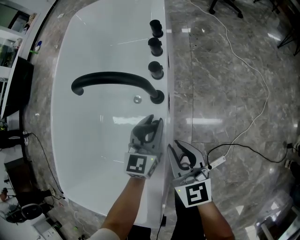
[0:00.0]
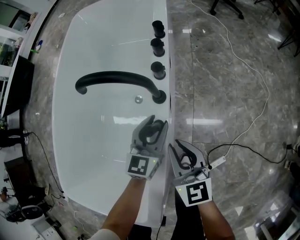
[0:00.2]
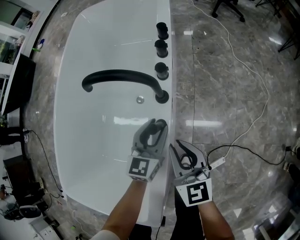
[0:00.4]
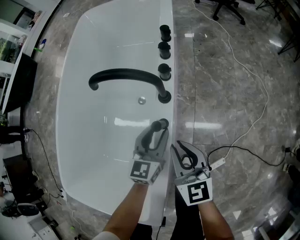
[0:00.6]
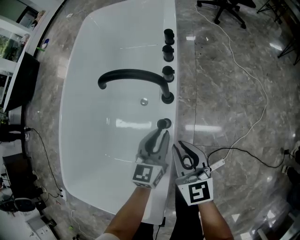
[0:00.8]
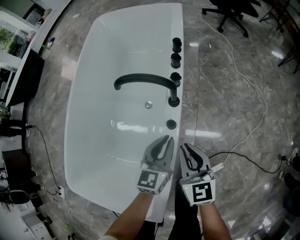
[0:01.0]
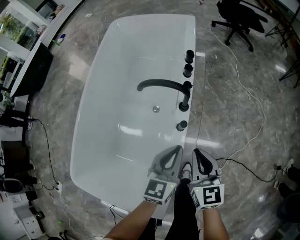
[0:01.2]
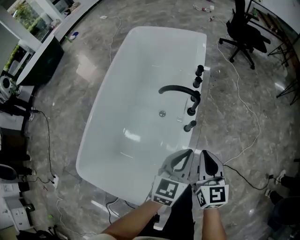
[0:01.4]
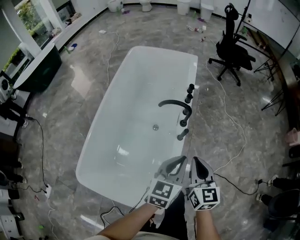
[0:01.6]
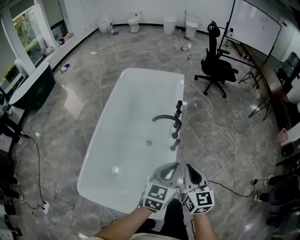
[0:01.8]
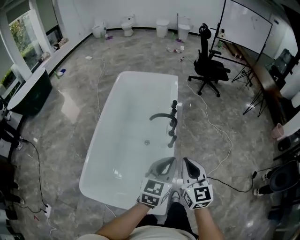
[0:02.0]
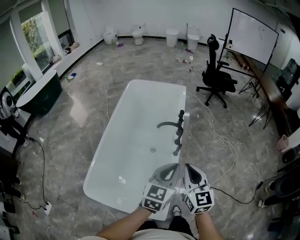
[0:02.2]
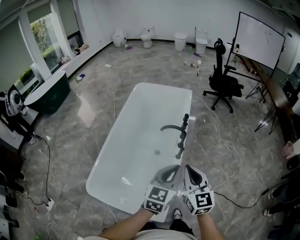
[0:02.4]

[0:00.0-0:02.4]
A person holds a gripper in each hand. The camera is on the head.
0:00.0 to 0:01.2: The left gripper heads upward and backward, covering approximately 20 cm, and closes up; the right gripper goes about 10 cm upward.
0:01.2 to 0:02.4: The grippers both shift upward and backward by roughly 35 cm.

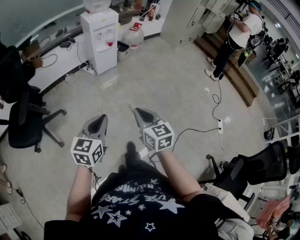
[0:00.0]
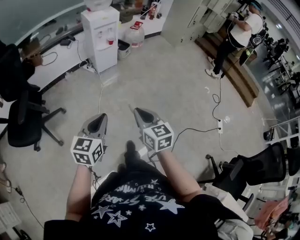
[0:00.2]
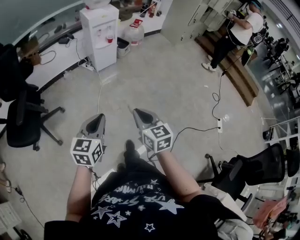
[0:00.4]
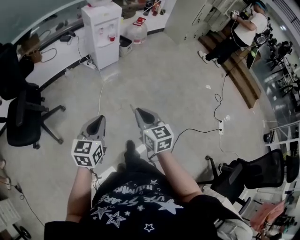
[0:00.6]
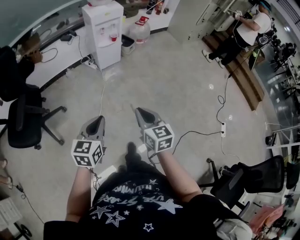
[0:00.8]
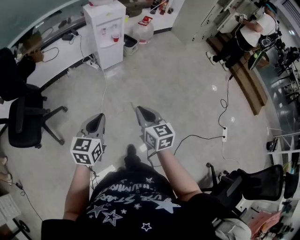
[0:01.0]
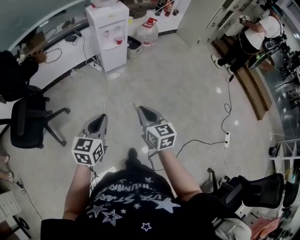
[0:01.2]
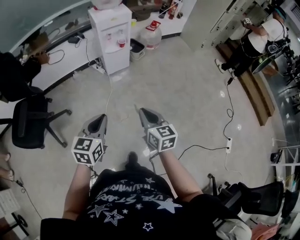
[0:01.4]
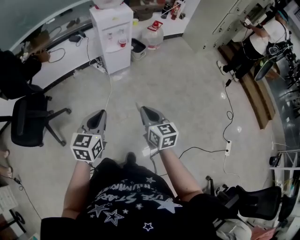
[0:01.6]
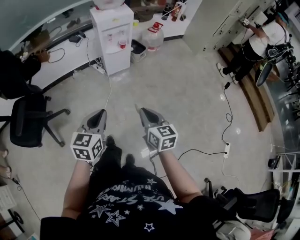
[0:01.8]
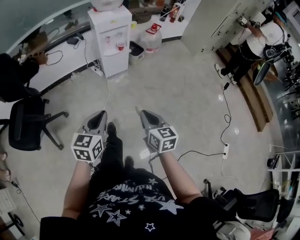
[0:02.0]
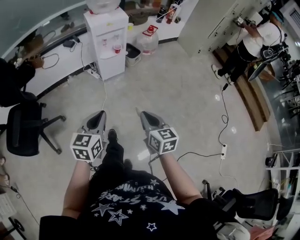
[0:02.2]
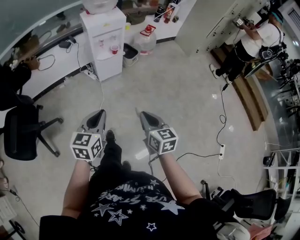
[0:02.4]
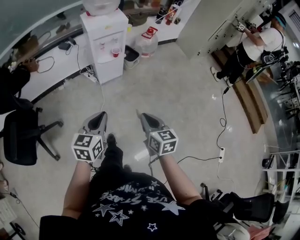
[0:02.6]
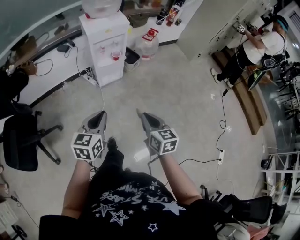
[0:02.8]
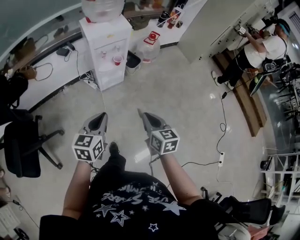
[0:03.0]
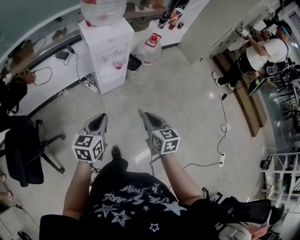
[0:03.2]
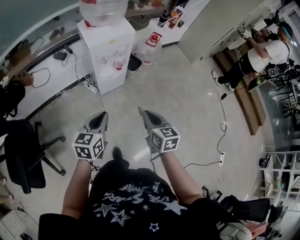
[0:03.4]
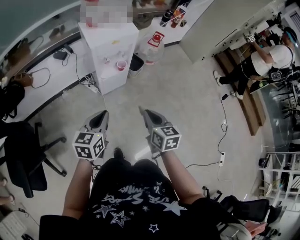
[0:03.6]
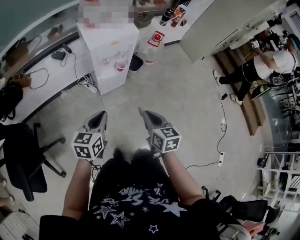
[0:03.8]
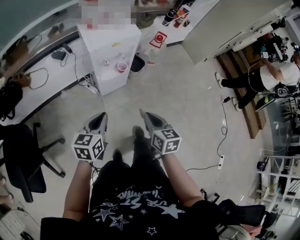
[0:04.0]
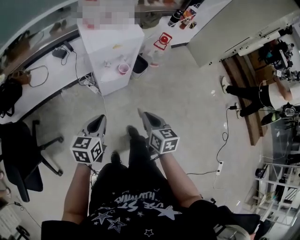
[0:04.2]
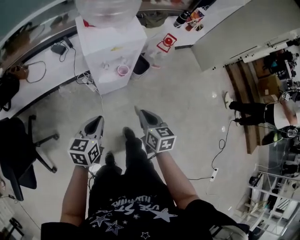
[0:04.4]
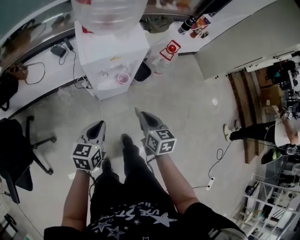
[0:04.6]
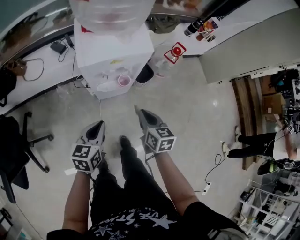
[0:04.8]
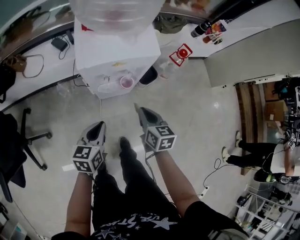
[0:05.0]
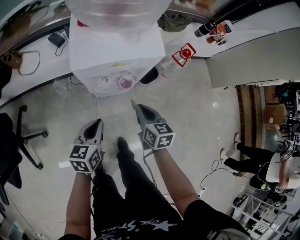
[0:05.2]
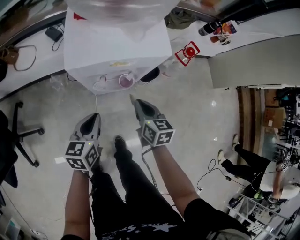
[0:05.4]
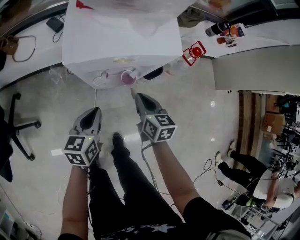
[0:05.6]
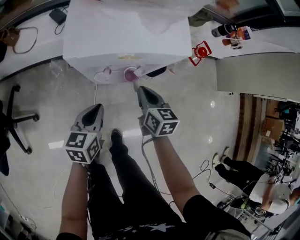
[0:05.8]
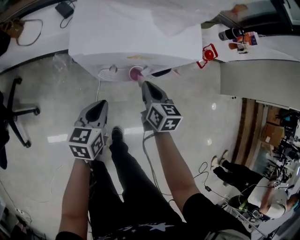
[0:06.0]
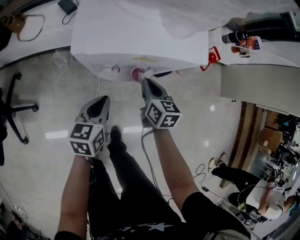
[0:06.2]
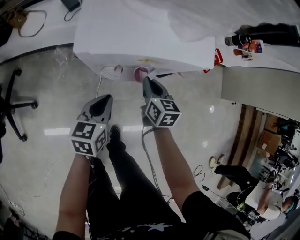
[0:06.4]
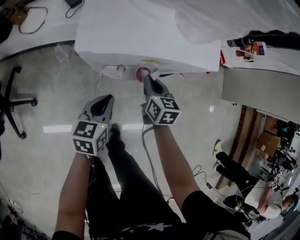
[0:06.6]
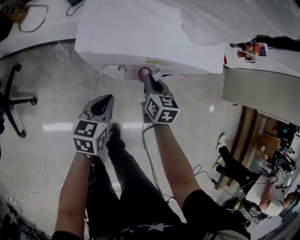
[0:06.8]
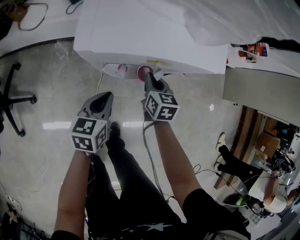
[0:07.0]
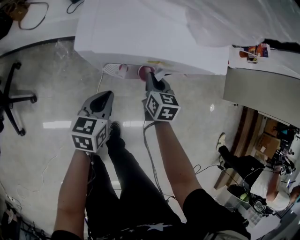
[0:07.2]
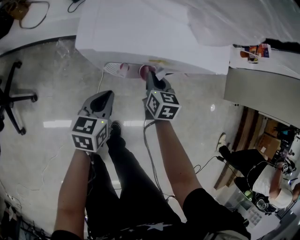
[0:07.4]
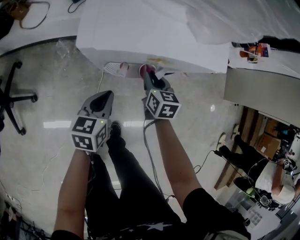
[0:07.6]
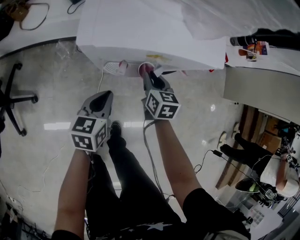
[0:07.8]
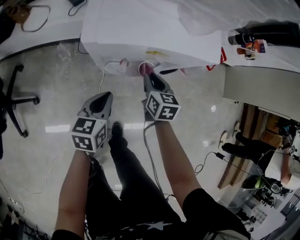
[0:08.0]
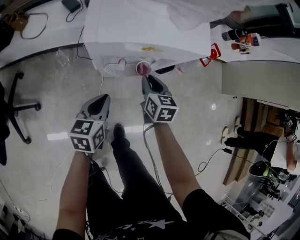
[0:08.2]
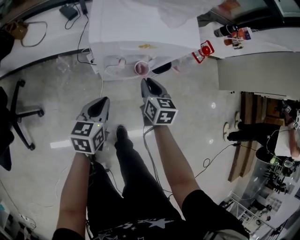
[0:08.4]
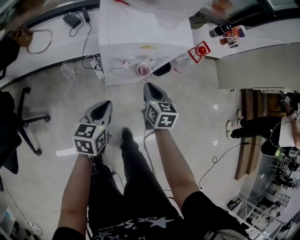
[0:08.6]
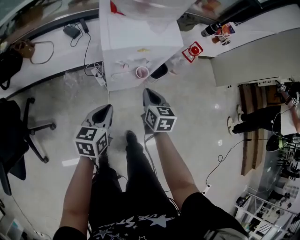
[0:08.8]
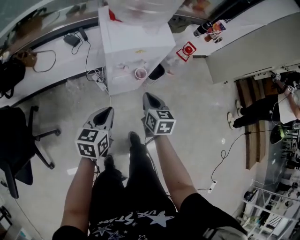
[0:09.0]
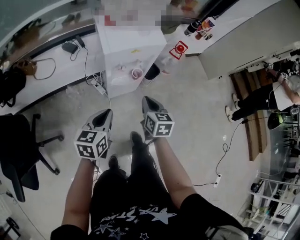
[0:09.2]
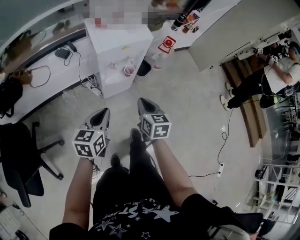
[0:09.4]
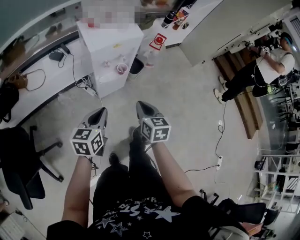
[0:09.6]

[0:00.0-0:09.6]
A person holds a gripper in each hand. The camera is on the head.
0:00.0 to 0:01.6: The grippers both shift forward by approximately 25 cm.
0:01.6 to 0:03.2: The two grippers go about 30 cm forward.
0:03.2 to 0:04.8: The grippers both shift forward and downward by approximately 30 cm.
0:04.8 to 0:06.4: The left gripper moves downward and forward, about 20 cm; the right gripper moves forward and downward, approximately 25 cm.
0:06.4 to 0:08.0: The grippers move only a little.
0:08.0 to 0:09.6: The left gripper travels upward and backward by approximately 30 cm, and turns by about 30 degrees. Meanwhile the right gripper goes some 40 cm backward and upward, and turns by some 20 degrees.

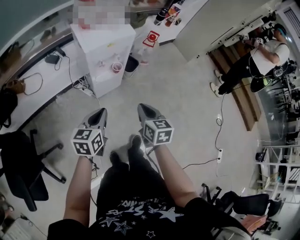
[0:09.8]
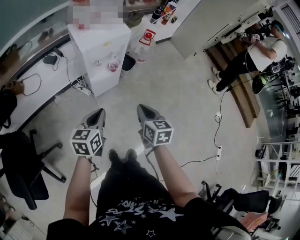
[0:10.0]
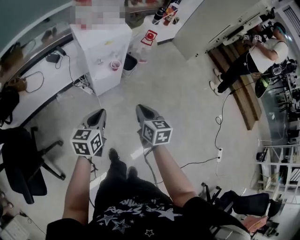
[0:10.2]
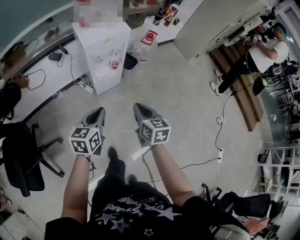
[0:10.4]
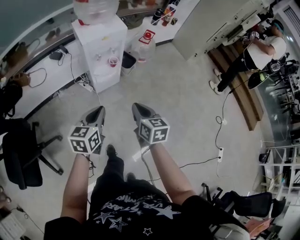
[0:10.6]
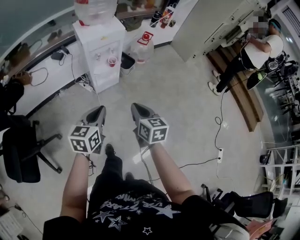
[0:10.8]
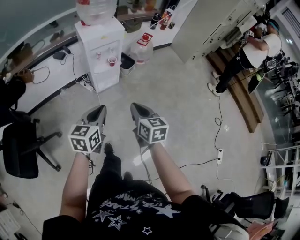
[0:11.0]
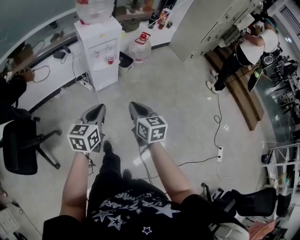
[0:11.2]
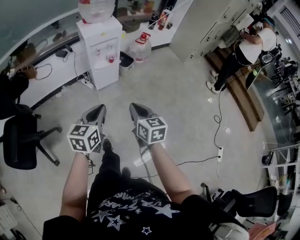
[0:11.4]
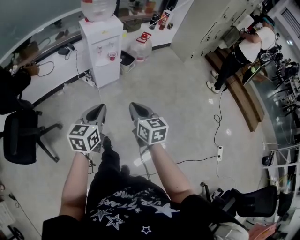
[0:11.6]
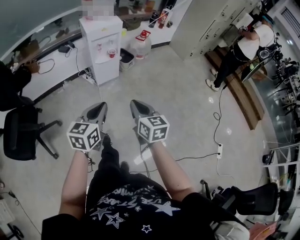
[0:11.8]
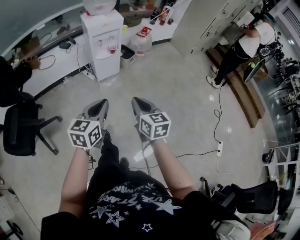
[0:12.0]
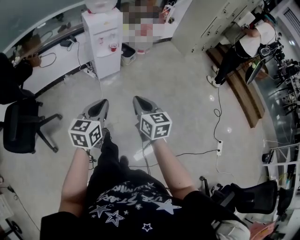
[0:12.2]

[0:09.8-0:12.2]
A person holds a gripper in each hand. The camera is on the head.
0:09.8 to 0:11.0: The right gripper shifts some 15 cm backward, while the left gripper moves backward, to the right and upward, about 20 cm.
0:11.0 to 0:12.2: The two grippers go about 20 cm backward.

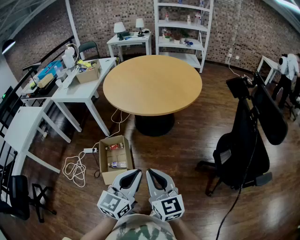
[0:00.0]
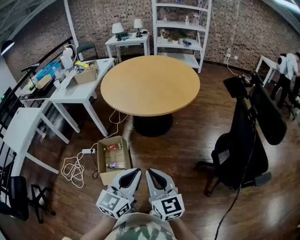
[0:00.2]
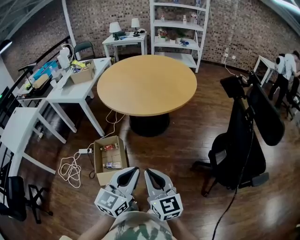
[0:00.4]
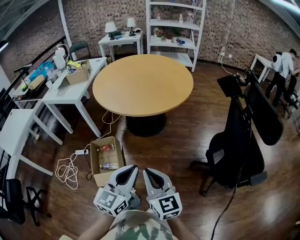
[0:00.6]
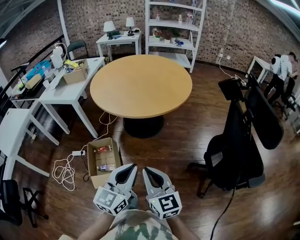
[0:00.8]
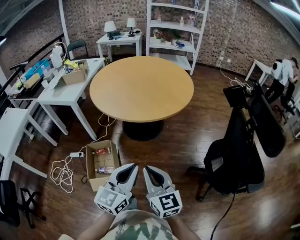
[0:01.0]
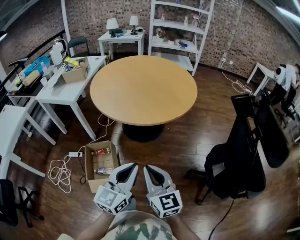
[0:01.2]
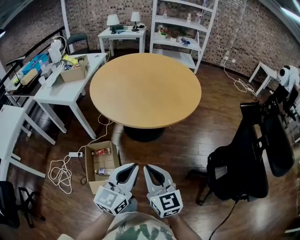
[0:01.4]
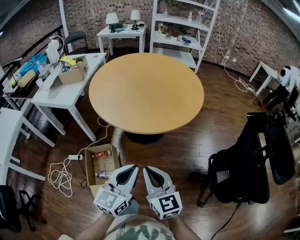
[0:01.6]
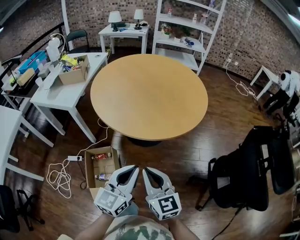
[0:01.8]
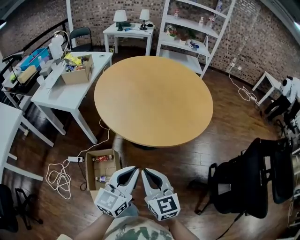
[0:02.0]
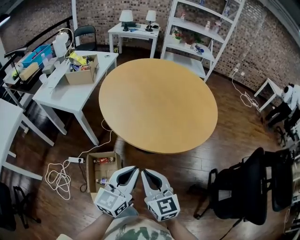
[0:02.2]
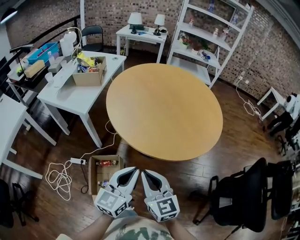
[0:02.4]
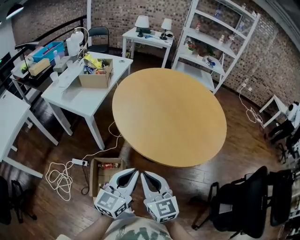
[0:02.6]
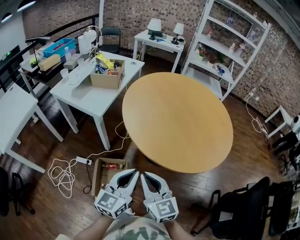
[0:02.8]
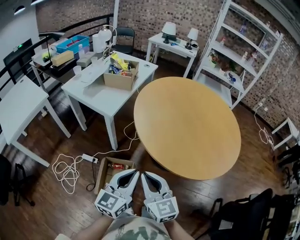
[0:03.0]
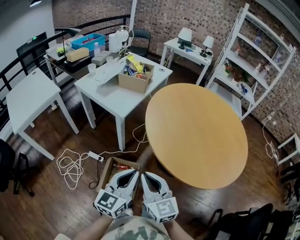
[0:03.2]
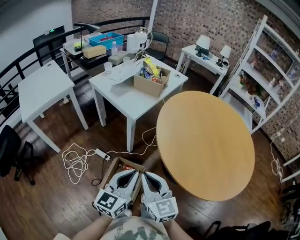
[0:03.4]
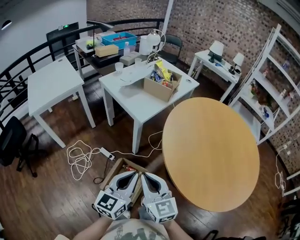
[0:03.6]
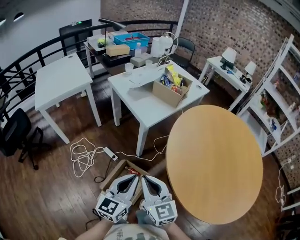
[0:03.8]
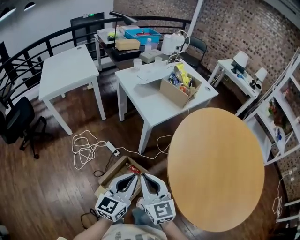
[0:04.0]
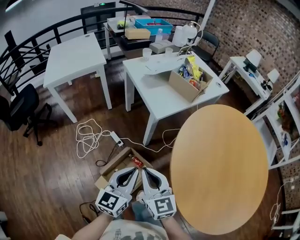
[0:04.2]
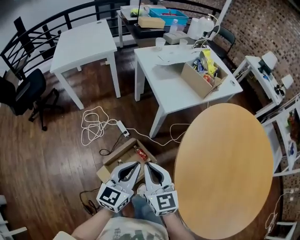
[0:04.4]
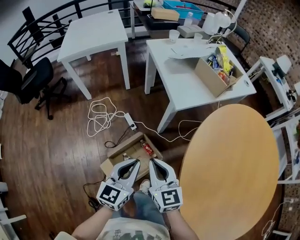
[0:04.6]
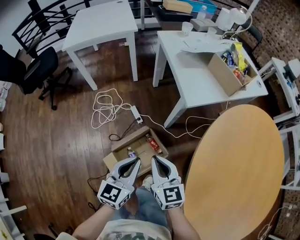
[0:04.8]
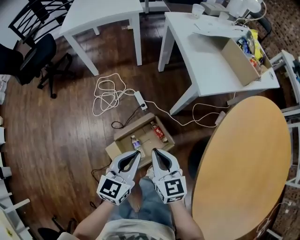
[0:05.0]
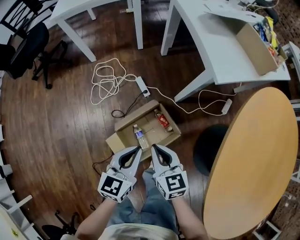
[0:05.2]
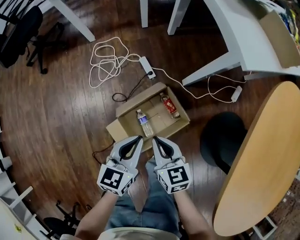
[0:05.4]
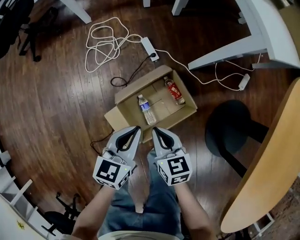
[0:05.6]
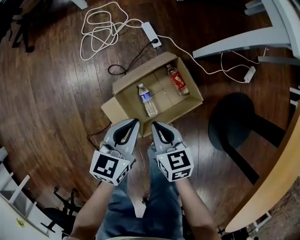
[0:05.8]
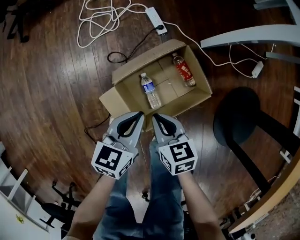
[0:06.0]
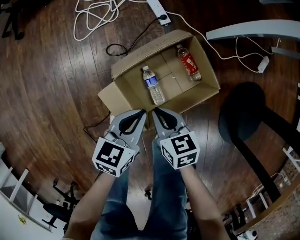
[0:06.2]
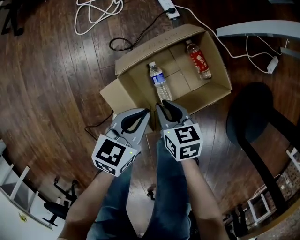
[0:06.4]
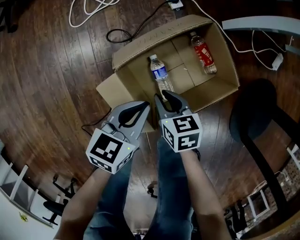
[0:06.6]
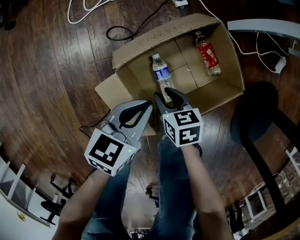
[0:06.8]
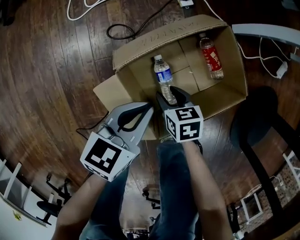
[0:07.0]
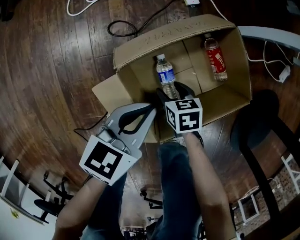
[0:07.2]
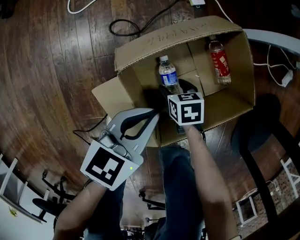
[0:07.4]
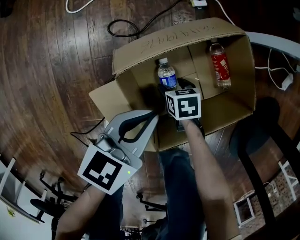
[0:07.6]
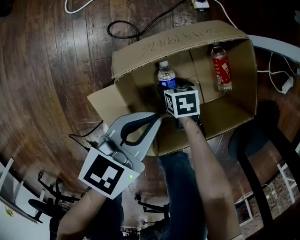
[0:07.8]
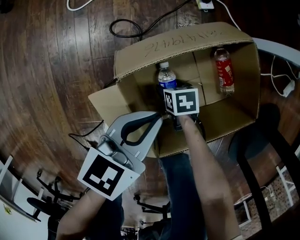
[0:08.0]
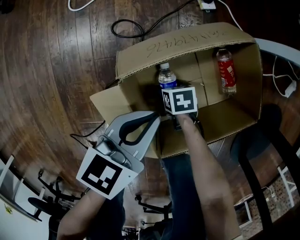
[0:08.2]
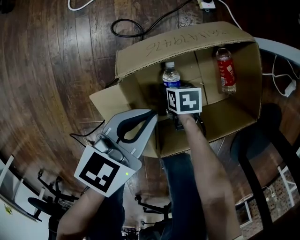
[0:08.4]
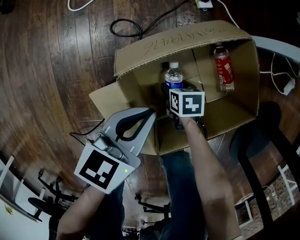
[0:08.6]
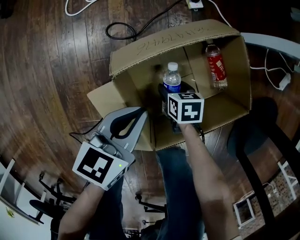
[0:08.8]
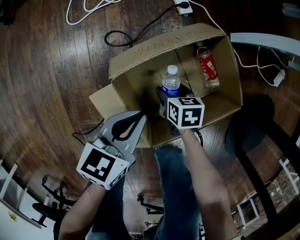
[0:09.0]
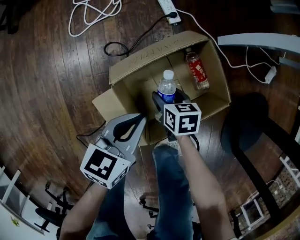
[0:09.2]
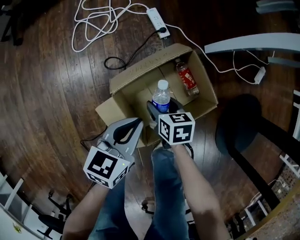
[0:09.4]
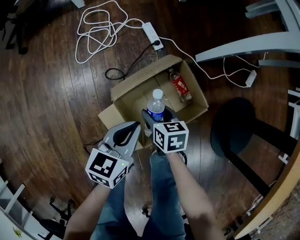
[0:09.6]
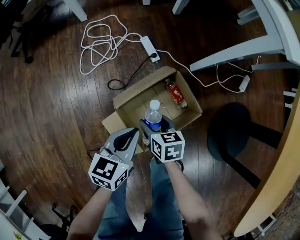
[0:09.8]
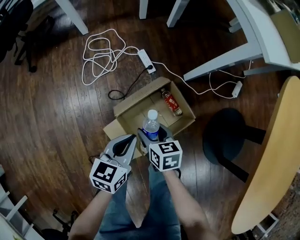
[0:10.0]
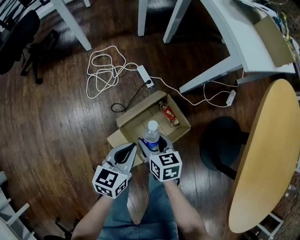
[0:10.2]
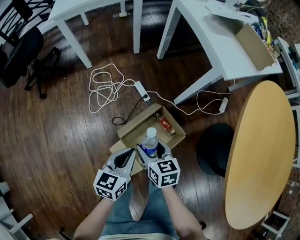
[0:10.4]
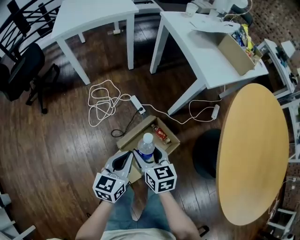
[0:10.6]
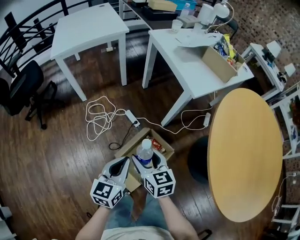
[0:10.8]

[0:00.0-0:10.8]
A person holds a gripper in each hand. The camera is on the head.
0:00.0 to 0:01.6: Both grippers travel together forward, roughly 20 cm.
0:01.6 to 0:03.0: The two grippers go approximately 25 cm to the left and forward.
0:03.0 to 0:04.6: The right gripper changes place by some 20 cm, and swivels roughly 40 degrees. The left gripper ends up some 20 cm from where it was, and turns by roughly 50 degrees.
0:04.6 to 0:06.2: The grippers both shift downward by roughly 50 cm. The right gripper turns by about 40 degrees. Meanwhile the left gripper changes its angle by approximately 30 degrees.
0:06.2 to 0:07.8: The right gripper heads downward, covering about 30 cm, turns by about 30 degrees, and opens, while the left gripper travels downward by some 10 cm.
0:07.8 to 0:09.2: The left gripper shifts some 5 cm upward. The right gripper shifts about 15 cm upward, and changes its angle by approximately 20 degrees.
0:09.2 to 0:10.8: The two grippers go approximately 50 cm upward. The left gripper rotates some 20 degrees. The right gripper tilts its fingers roughly 30 degrees upward.
